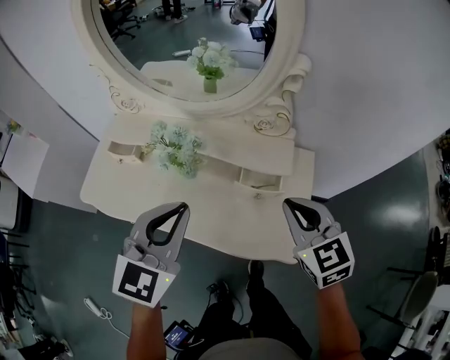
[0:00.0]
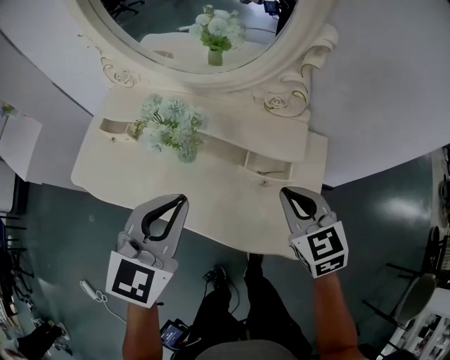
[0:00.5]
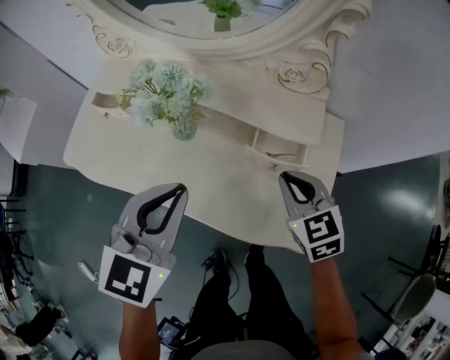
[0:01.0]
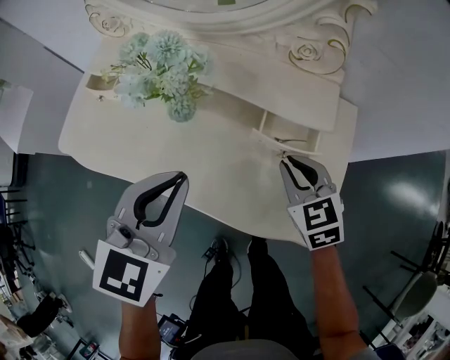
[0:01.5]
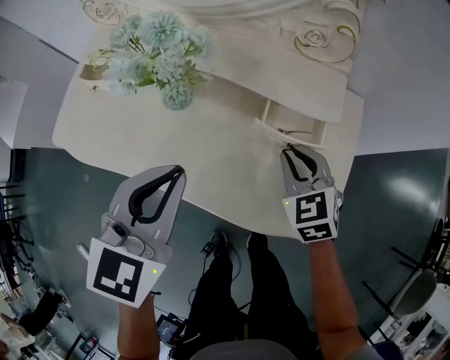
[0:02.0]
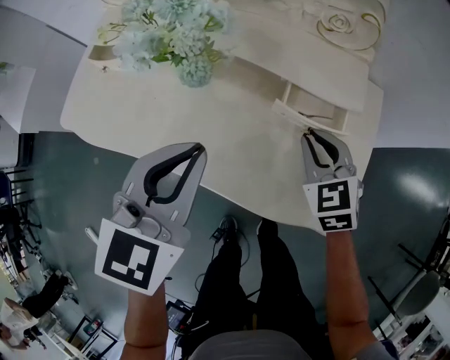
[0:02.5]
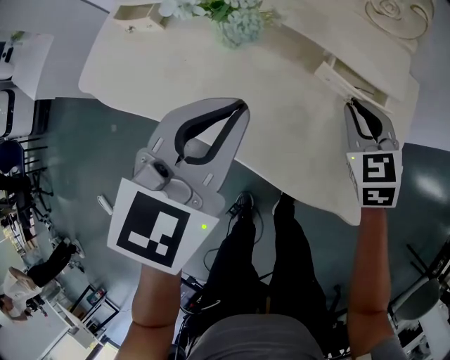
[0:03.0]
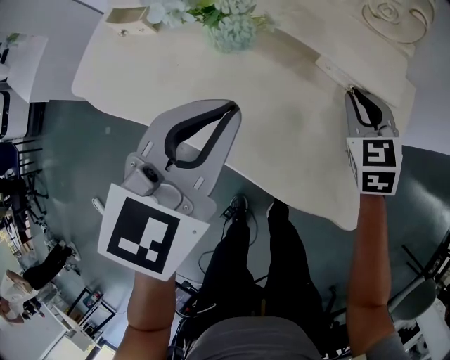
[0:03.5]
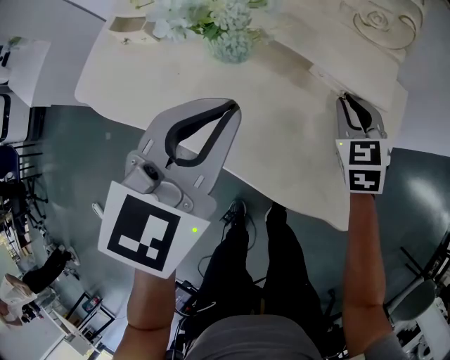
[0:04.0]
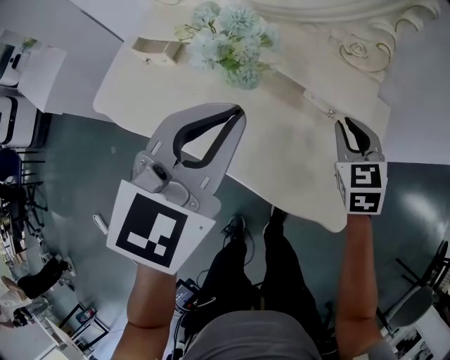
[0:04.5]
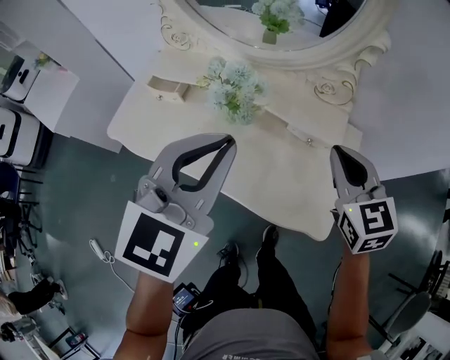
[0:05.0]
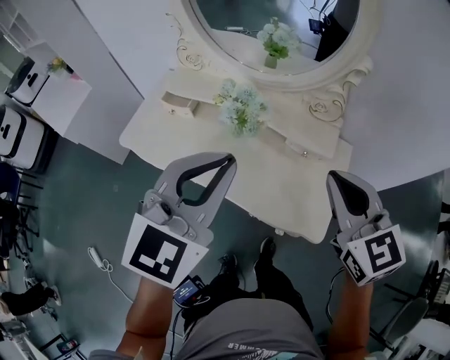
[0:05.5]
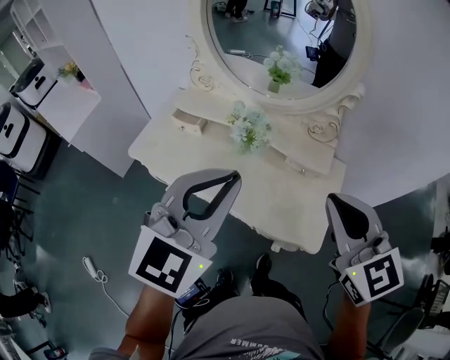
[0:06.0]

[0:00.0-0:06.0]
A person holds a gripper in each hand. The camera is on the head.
0:00.0 to 0:02.0: The left gripper is displaced downward by approximately 15 cm, while the right gripper shifts some 25 cm downward.
0:02.0 to 0:04.0: The right gripper moves forward, some 5 cm.
0:04.0 to 0:06.0: The right gripper heads upward and backward, covering some 50 cm, and swivels roughly 30 degrees. The left gripper goes approximately 30 cm upward and backward, and turns by roughly 20 degrees.

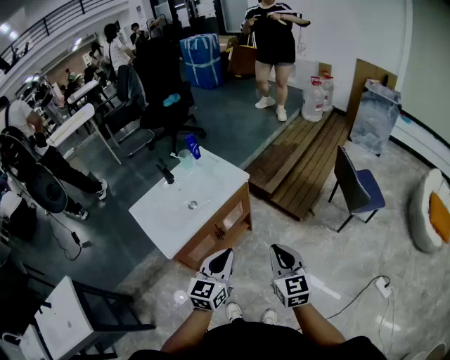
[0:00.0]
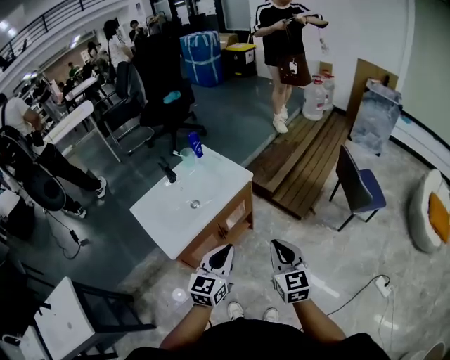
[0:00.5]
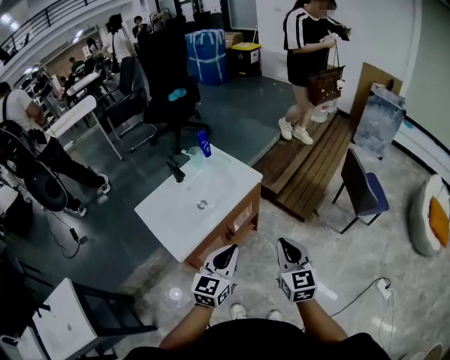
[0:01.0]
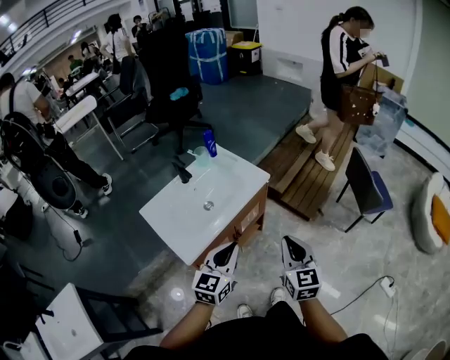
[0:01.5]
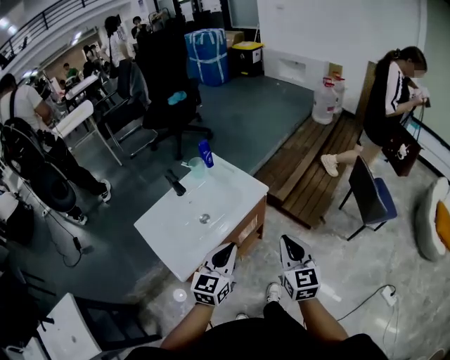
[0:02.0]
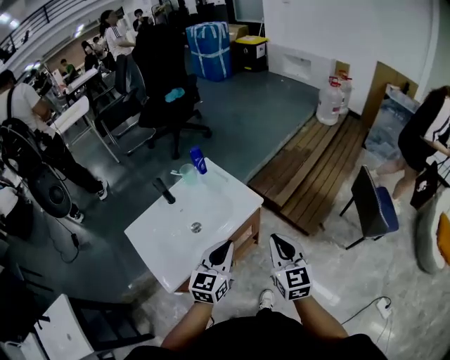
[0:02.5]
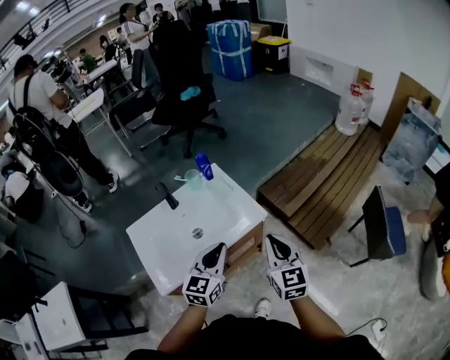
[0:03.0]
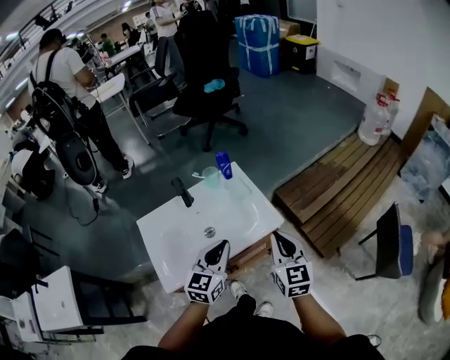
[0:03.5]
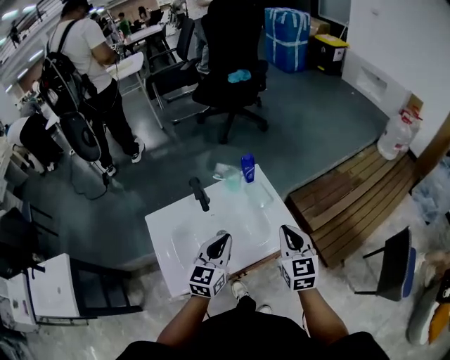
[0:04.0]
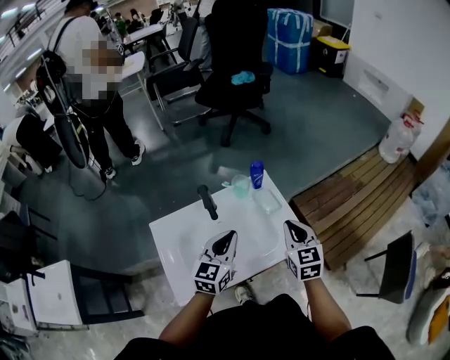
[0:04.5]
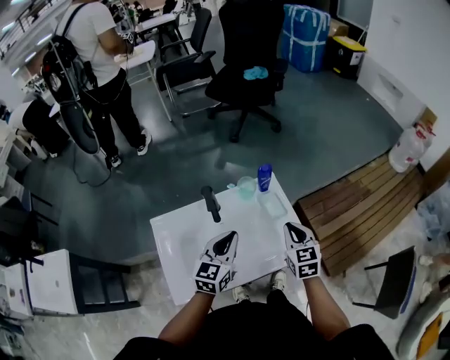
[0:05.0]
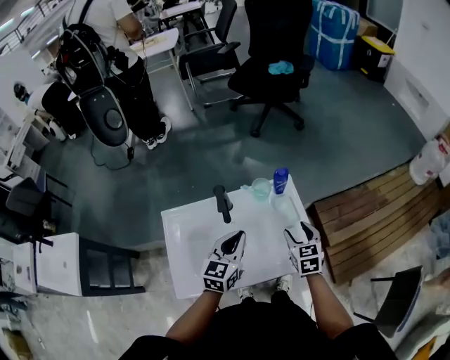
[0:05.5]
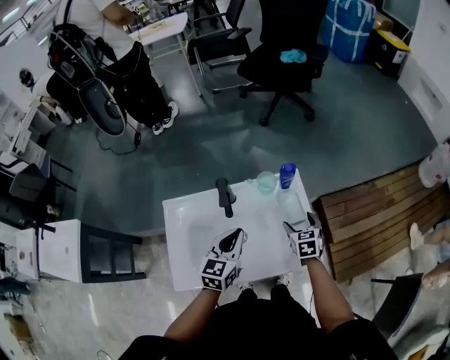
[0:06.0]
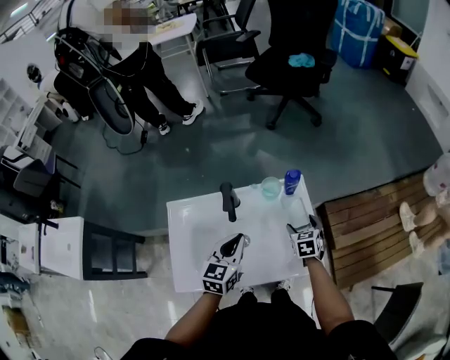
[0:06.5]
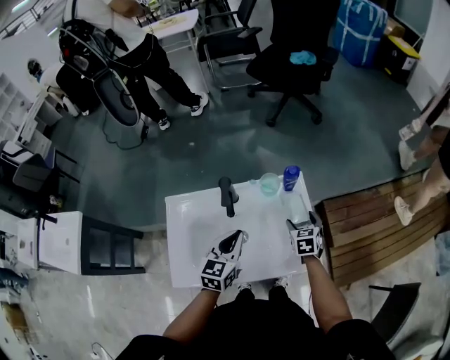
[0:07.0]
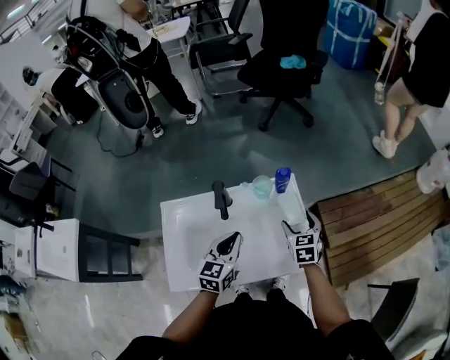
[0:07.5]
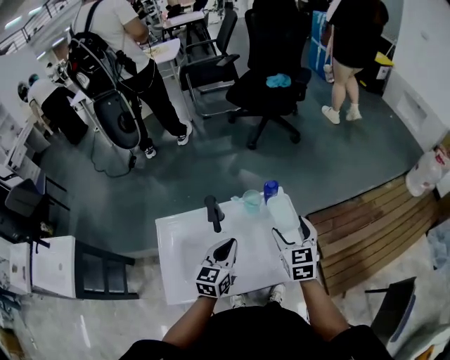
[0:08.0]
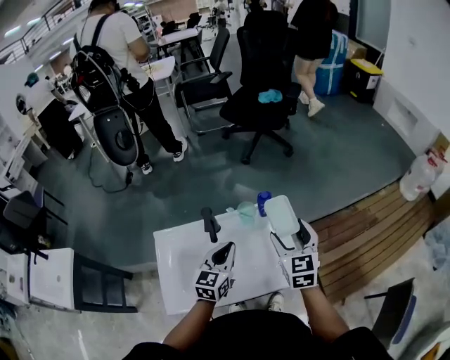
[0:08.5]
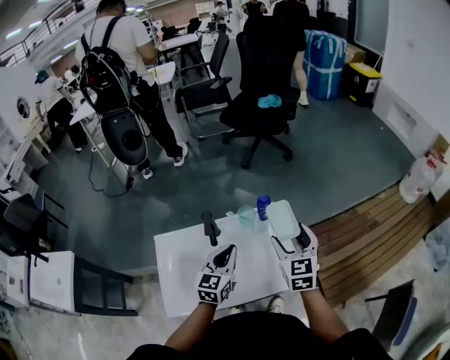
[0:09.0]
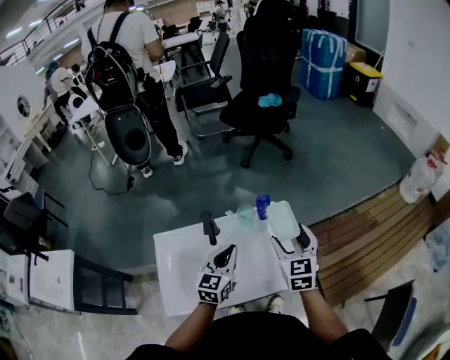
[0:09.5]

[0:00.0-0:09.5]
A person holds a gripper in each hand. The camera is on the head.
0:00.0 to 0:02.0: The two grippers go roughly 15 cm forward and to the left.
0:02.0 to 0:04.0: The two grippers go roughly 25 cm forward. The left gripper changes its angle by some 30 degrees. Meanwhile the right gripper turns by roughly 20 degrees.
0:04.0 to 0:05.5: The right gripper travels downward and forward by about 20 cm, turns by roughly 20 degrees, and opens. Meanwhile the left gripper is displaced forward by approximately 10 cm.
0:05.5 to 0:07.5: The right gripper goes some 5 cm forward, travels downward and back again, about 10 cm each way, and opens its fingers.
0:07.5 to 0:09.5: The left gripper travels upward by roughly 5 cm; the right gripper heads upward, covering roughly 15 cm.

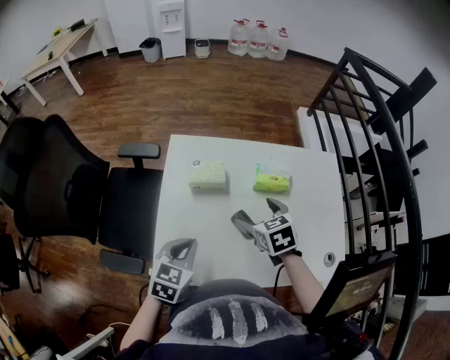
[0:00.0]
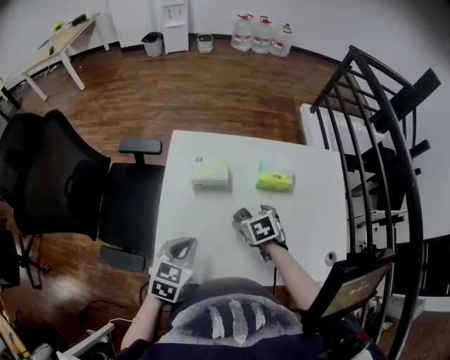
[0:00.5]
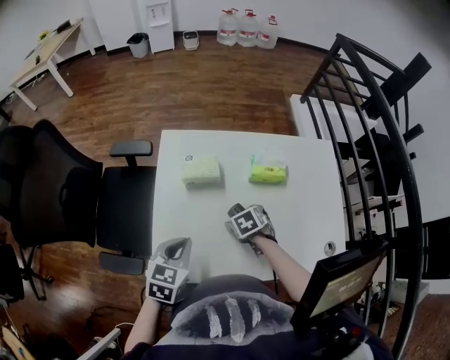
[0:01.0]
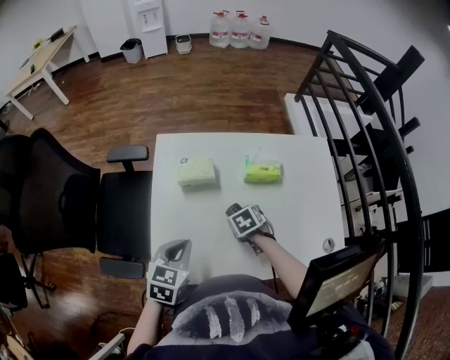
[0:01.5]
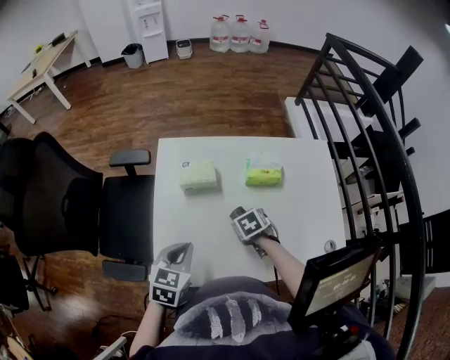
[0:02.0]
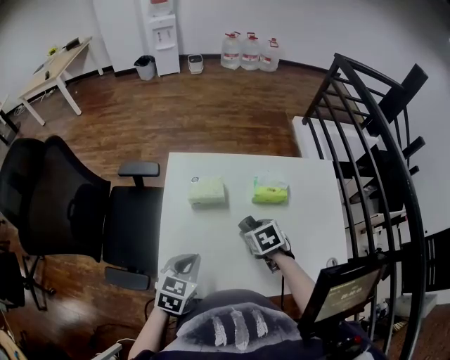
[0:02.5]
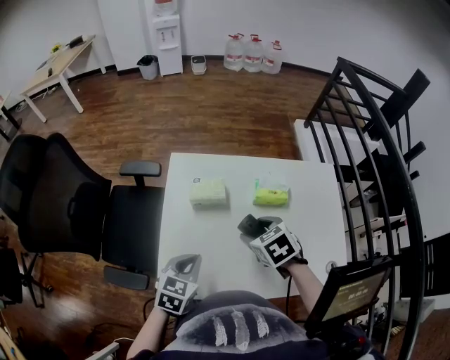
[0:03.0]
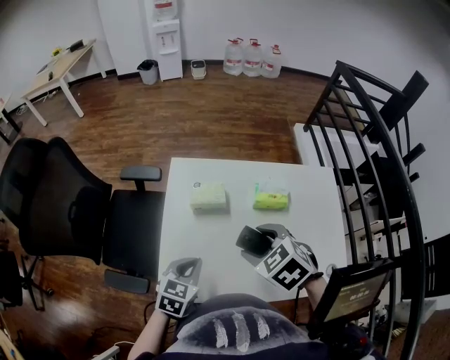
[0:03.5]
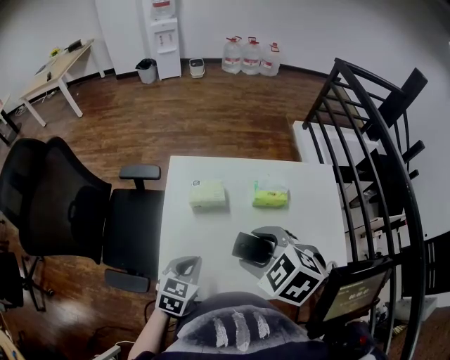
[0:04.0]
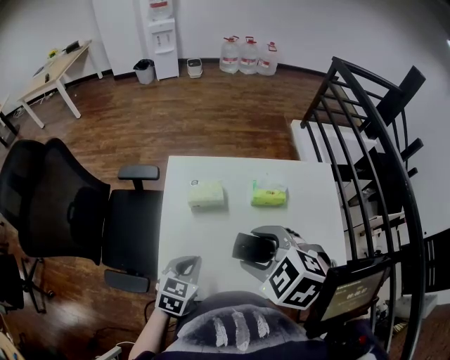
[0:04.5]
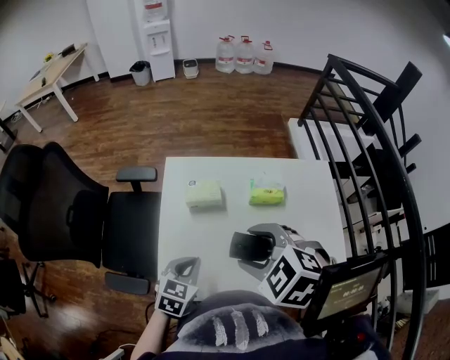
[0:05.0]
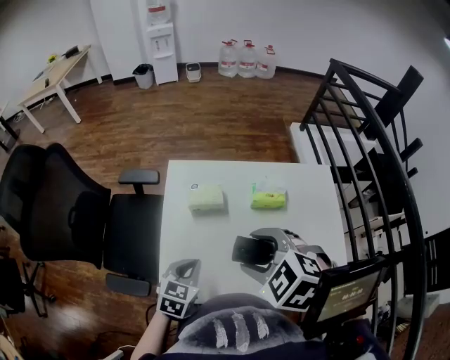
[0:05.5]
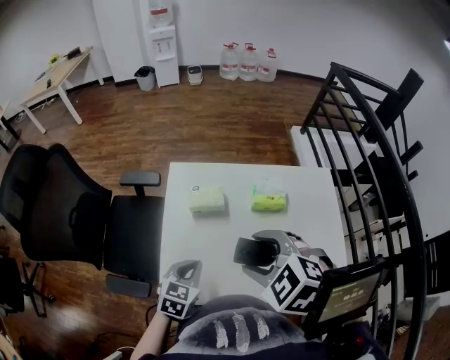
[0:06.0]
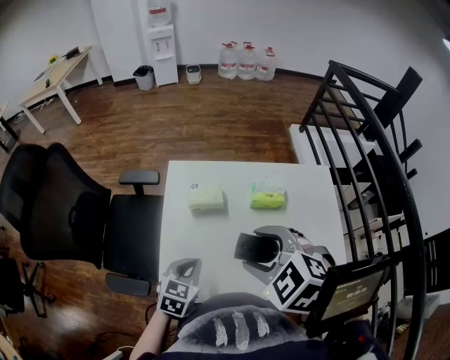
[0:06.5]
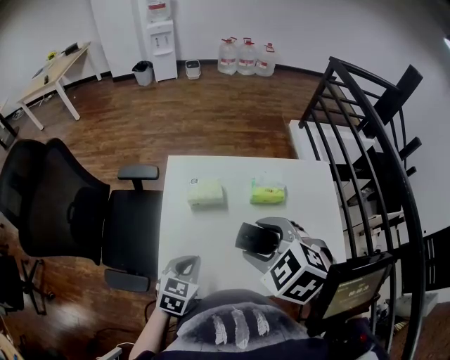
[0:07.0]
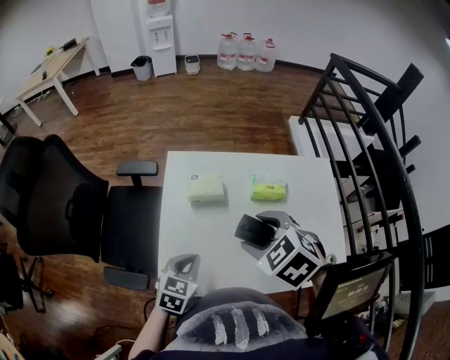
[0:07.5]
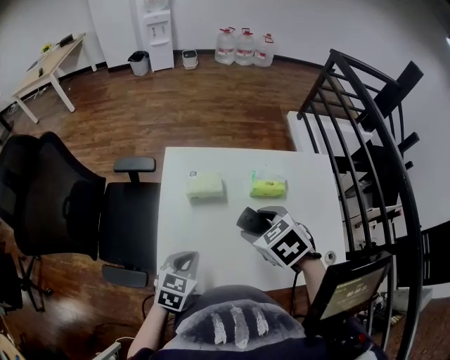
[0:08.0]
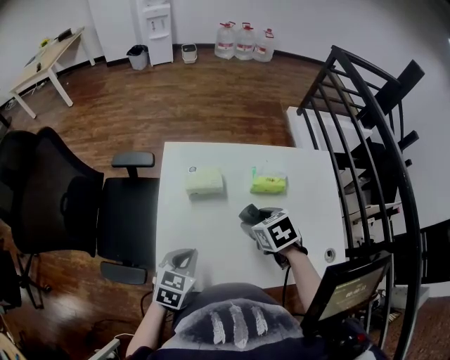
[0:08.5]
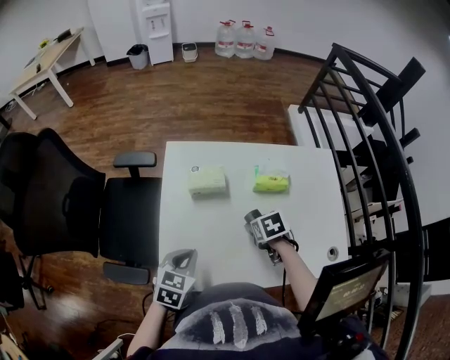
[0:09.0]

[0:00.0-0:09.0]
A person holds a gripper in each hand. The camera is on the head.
0:00.0 to 0:02.0: The right gripper is displaced downward by approximately 15 cm, rotates roughly 20 degrees, and closes up.
0:02.0 to 0:04.5: The right gripper shifts some 30 cm upward, and twists about 40 degrees counterclockwise, seen from behind.
0:04.5 to 0:07.0: The grippers move only a little.
0:07.0 to 0:09.0: The right gripper is displaced downward by some 25 cm, and twists about 50 degrees clockwise, seen from behind.

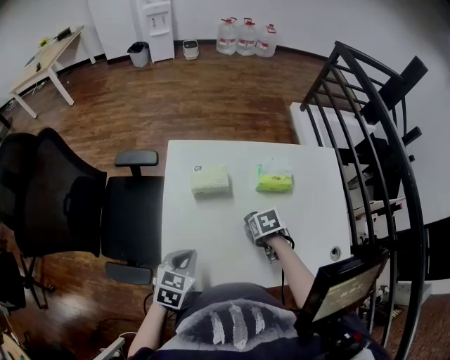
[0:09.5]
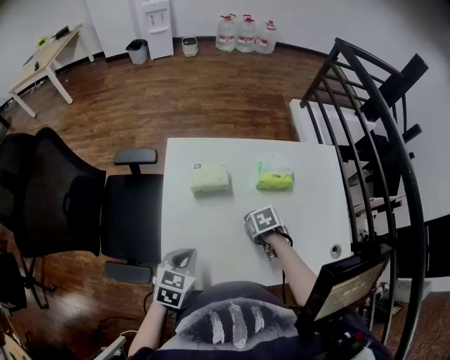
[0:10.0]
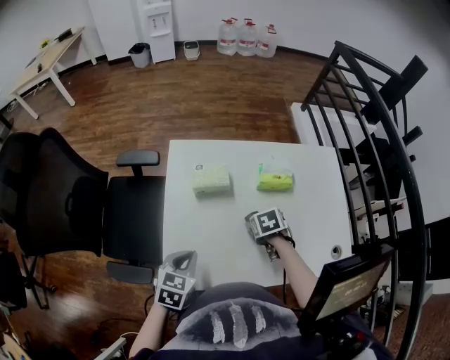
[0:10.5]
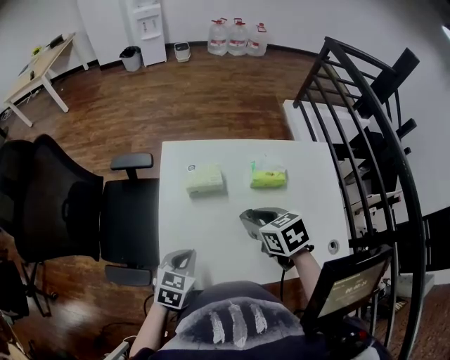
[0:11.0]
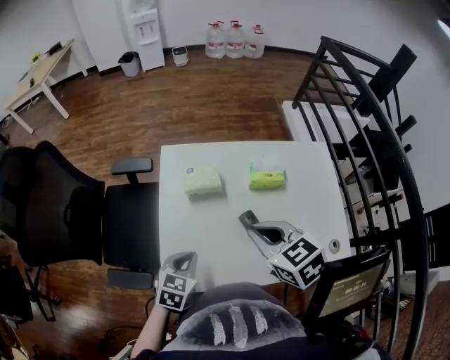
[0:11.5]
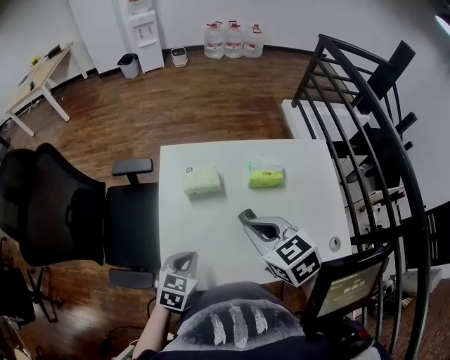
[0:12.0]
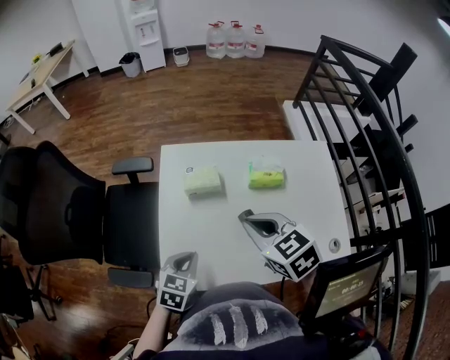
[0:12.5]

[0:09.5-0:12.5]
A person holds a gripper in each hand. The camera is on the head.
0:09.5 to 0:11.0: The right gripper moves upward, about 15 cm, and turns by some 30 degrees.
0:11.0 to 0:12.5: The right gripper travels upward by about 10 cm, and closes its fingers.
